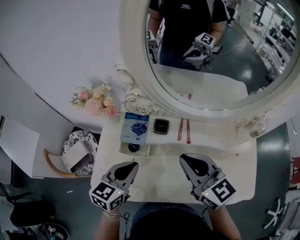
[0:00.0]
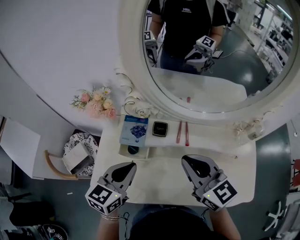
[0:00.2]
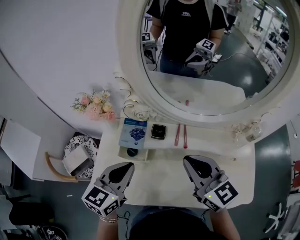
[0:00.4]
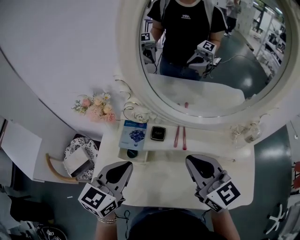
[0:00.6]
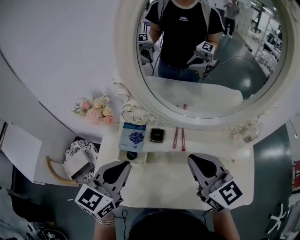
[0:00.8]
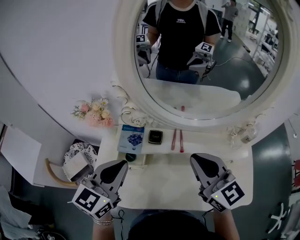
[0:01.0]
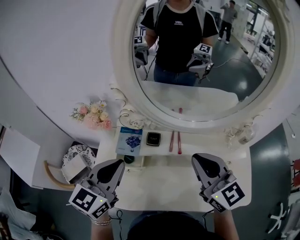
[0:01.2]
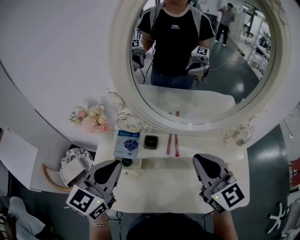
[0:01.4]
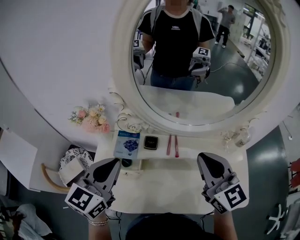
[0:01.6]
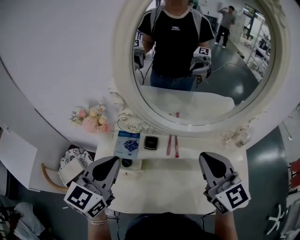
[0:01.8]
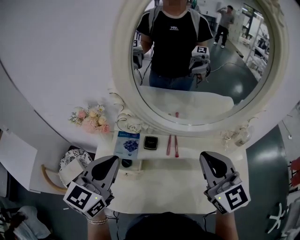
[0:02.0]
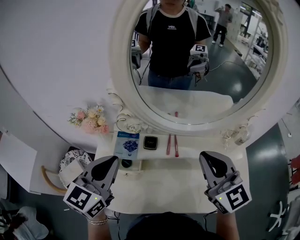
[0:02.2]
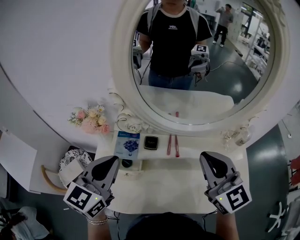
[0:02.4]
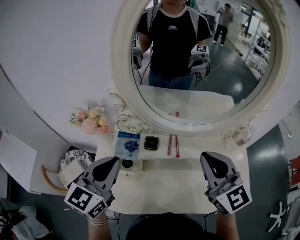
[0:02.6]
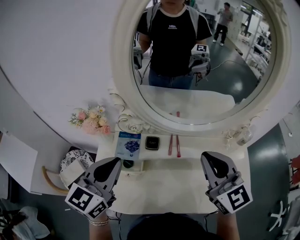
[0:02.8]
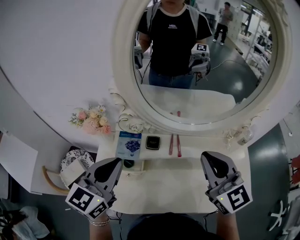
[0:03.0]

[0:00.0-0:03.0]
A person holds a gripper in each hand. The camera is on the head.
0:00.0 to 0:01.6: The left gripper shifts approximately 15 cm upward. Meanwhile the right gripper shifts about 10 cm to the right and upward.
0:01.6 to 0:03.0: The grippers move only a little.

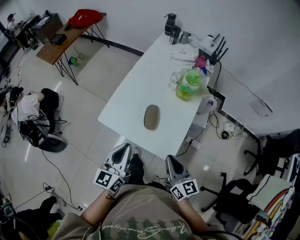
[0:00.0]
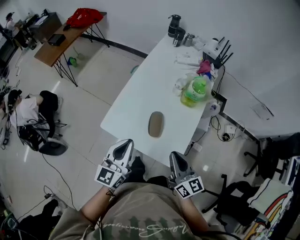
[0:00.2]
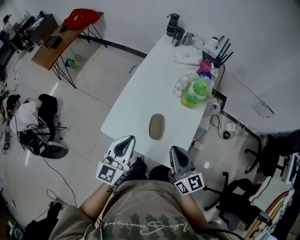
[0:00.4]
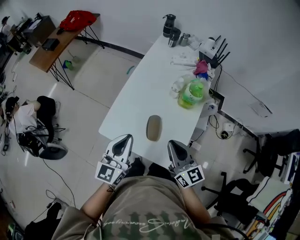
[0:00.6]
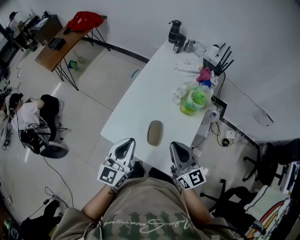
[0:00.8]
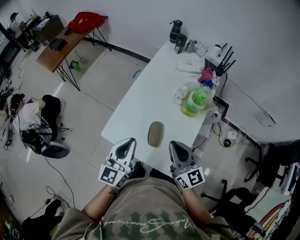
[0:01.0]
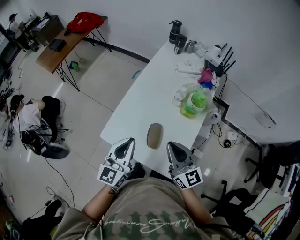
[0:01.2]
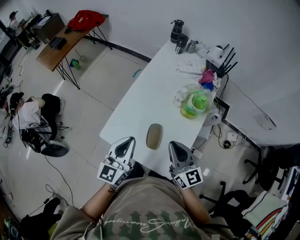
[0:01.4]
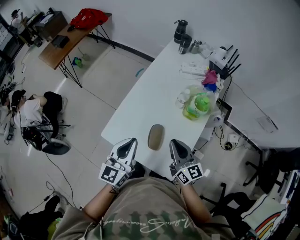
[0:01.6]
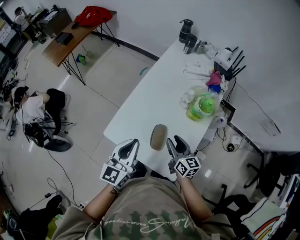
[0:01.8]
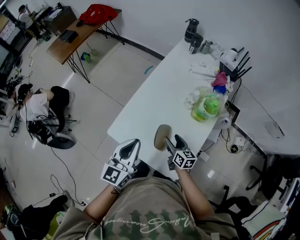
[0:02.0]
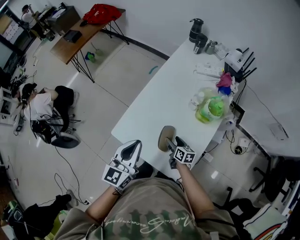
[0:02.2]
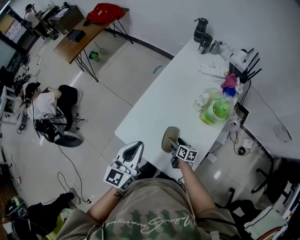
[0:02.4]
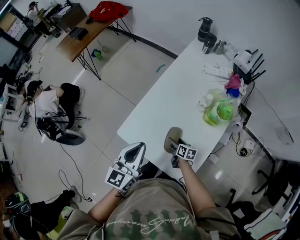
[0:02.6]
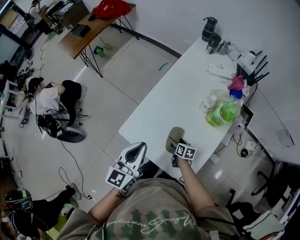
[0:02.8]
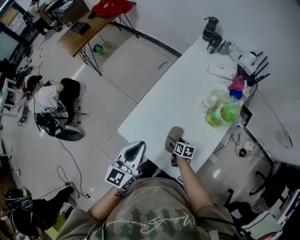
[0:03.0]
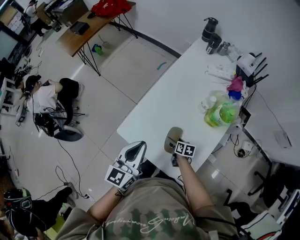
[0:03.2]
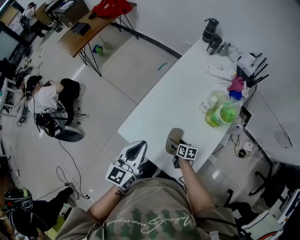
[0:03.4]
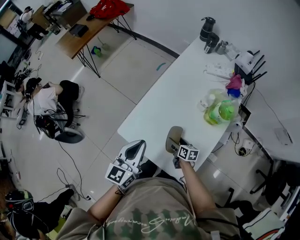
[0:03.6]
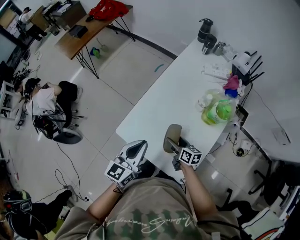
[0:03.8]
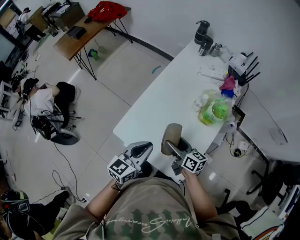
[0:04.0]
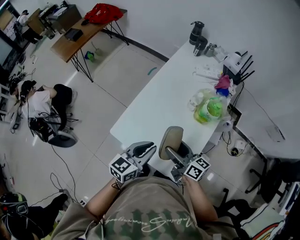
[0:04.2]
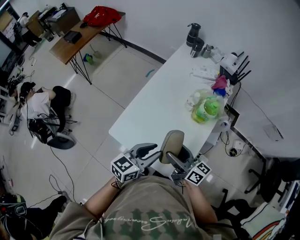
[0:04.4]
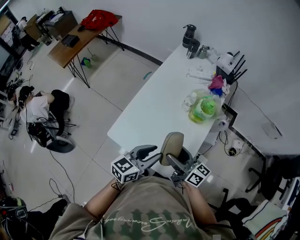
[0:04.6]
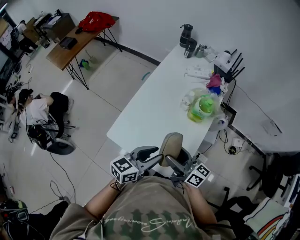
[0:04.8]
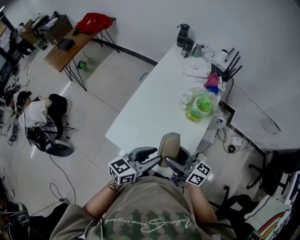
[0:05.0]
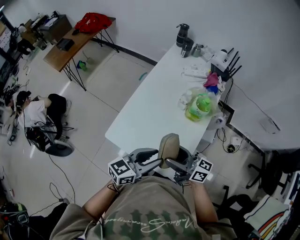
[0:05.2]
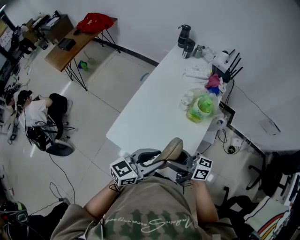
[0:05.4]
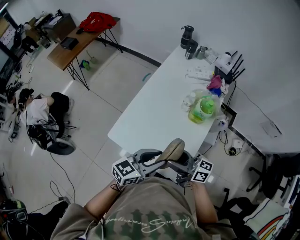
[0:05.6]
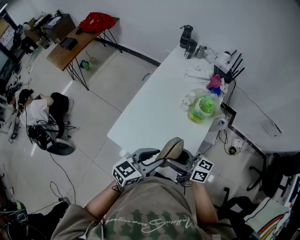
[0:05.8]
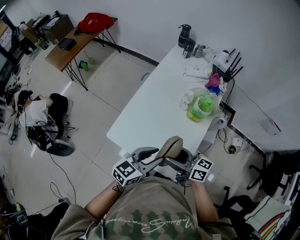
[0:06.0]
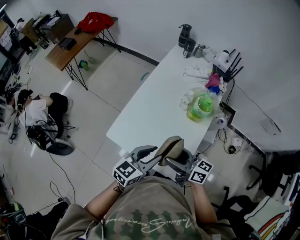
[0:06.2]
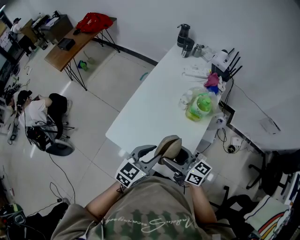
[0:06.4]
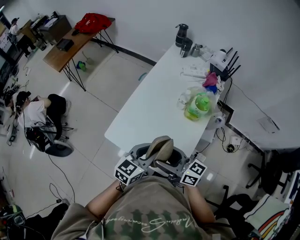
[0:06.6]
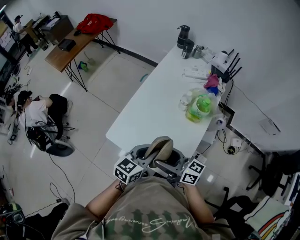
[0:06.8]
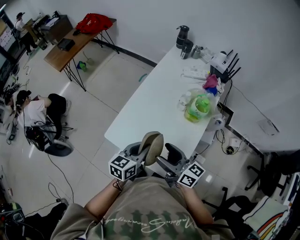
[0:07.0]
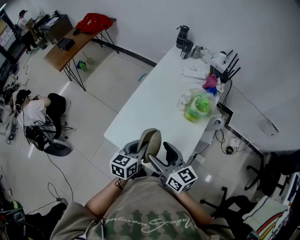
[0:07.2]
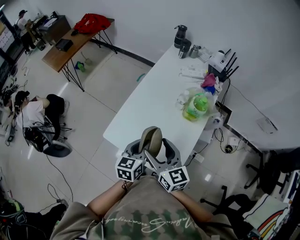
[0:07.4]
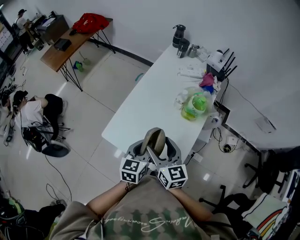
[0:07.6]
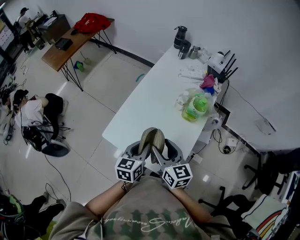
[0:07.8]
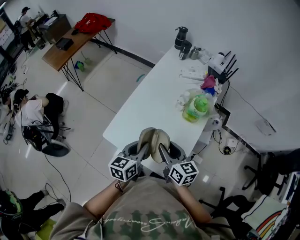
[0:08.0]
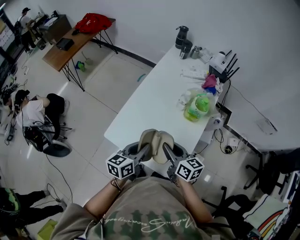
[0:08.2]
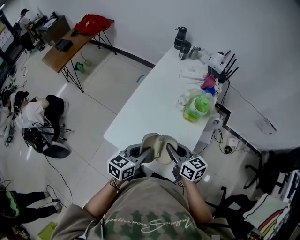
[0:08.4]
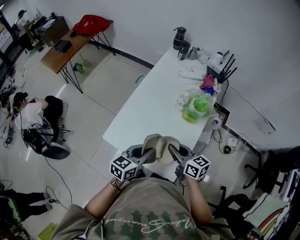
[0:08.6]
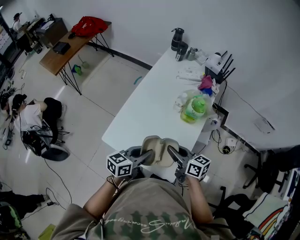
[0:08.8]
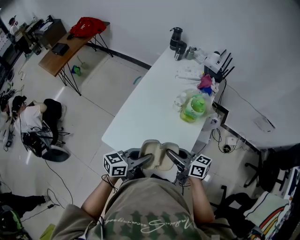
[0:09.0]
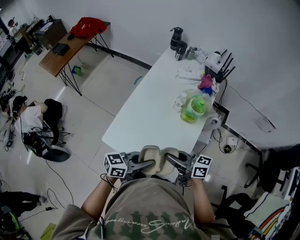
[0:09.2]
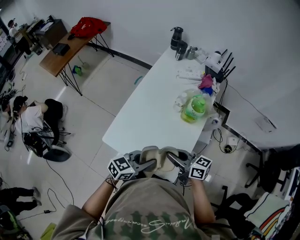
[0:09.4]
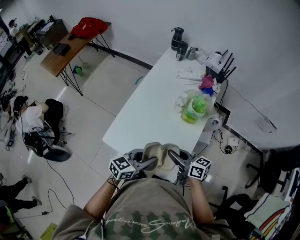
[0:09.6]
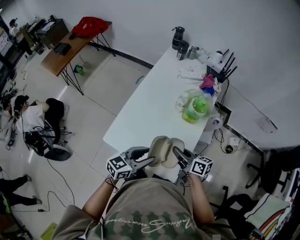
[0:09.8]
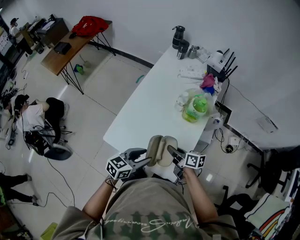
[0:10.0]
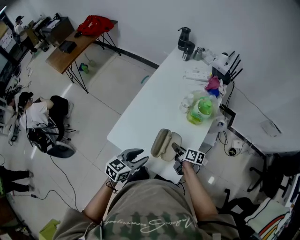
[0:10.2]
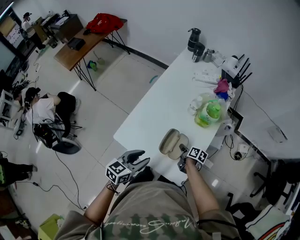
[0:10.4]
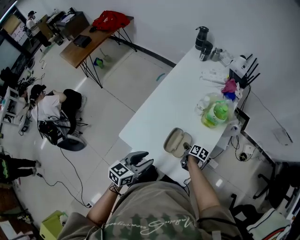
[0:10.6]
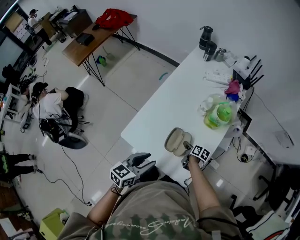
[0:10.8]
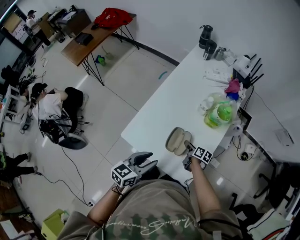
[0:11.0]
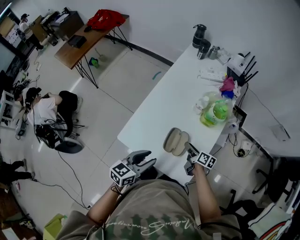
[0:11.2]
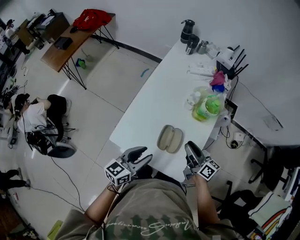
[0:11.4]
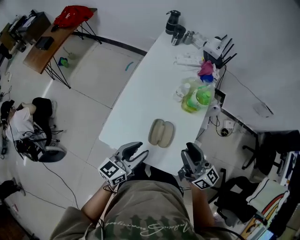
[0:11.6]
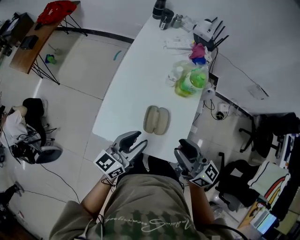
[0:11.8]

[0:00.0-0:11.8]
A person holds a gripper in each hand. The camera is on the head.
0:00.0 to 0:01.4: The grippers both shift forward by about 15 cm.
0:01.4 to 0:03.0: The left gripper moves roughly 5 cm. Meanwhile the right gripper heads downward, covering some 35 cm, angles its fingers downward, by roughly 40 degrees, and opens its fingers.
0:03.0 to 0:04.4: The left gripper goes some 10 cm to the right and backward, swivels roughly 30 degrees, and opens its fingers; the right gripper heads upward, covering some 30 cm, and angles its fingers upward, by approximately 50 degrees.
0:04.4 to 0:06.0: The grippers make only small movements.
0:06.0 to 0:07.4: The right gripper changes place by about 5 cm, and swivels about 40 degrees; the left gripper is displaced forward by about 5 cm, changes its angle by approximately 30 degrees, and closes.
0:07.4 to 0:08.8: The left gripper rotates some 30 degrees. Meanwhile the right gripper is displaced to the right and downward by roughly 10 cm, rotates approximately 30 degrees, and closes up.
0:08.8 to 0:10.4: The left gripper changes place by some 5 cm, and opens up; the right gripper is displaced downward by about 25 cm, and rotates roughly 50 degrees.
0:10.4 to 0:11.8: The left gripper moves upward, about 5 cm, and turns by some 20 degrees. The right gripper shifts some 35 cm upward, and points its fingers about 50 degrees further upward.

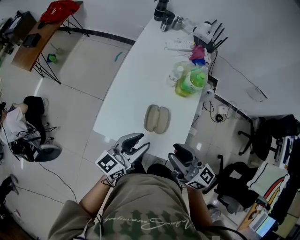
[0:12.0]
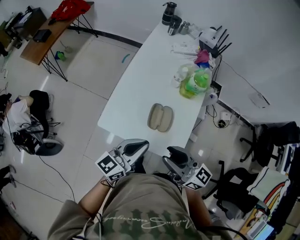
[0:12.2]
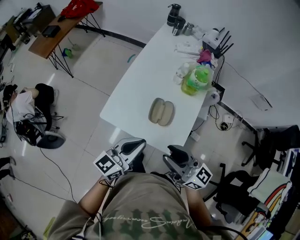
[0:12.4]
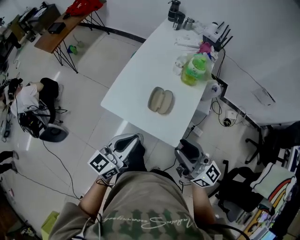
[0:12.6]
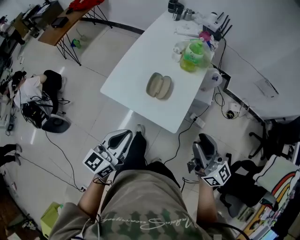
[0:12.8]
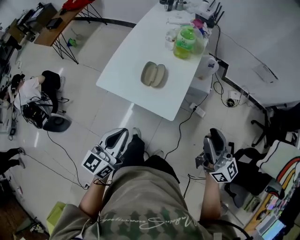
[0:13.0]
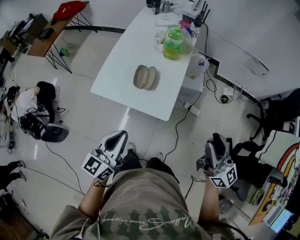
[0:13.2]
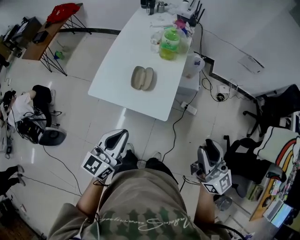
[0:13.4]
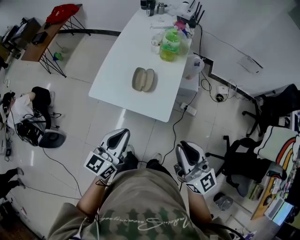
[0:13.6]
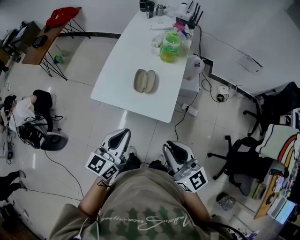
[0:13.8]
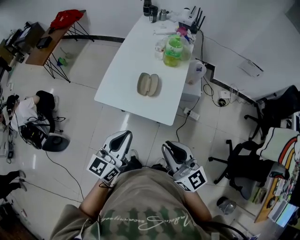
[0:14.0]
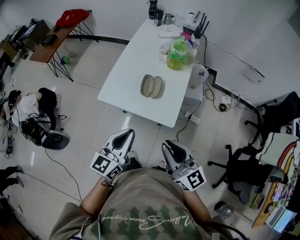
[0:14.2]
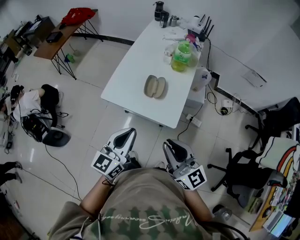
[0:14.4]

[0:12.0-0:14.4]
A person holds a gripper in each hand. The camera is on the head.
0:12.0 to 0:13.2: The left gripper goes roughly 25 cm backward, and closes. The right gripper travels backward and to the right by some 35 cm, and swivels roughly 20 degrees.
0:13.2 to 0:14.4: The right gripper shifts some 20 cm to the left.

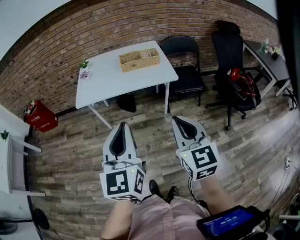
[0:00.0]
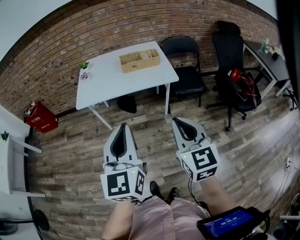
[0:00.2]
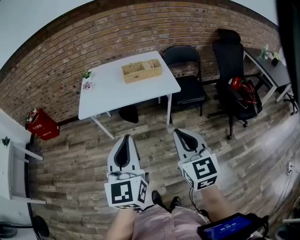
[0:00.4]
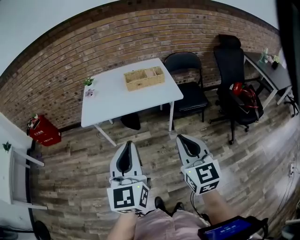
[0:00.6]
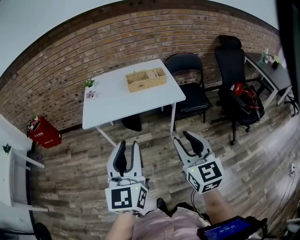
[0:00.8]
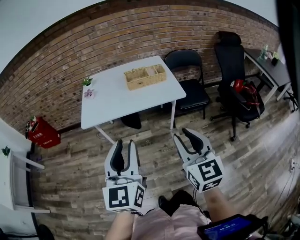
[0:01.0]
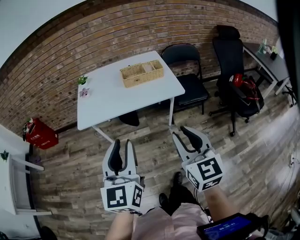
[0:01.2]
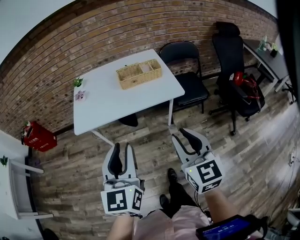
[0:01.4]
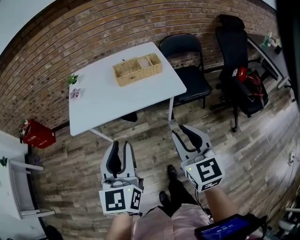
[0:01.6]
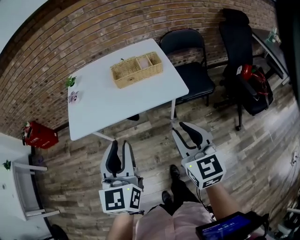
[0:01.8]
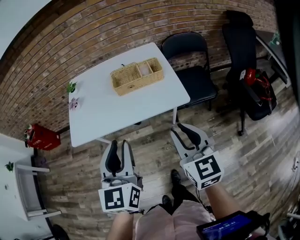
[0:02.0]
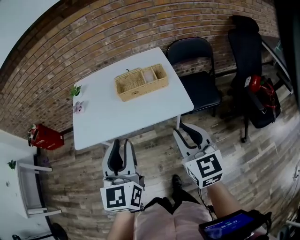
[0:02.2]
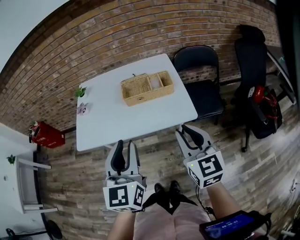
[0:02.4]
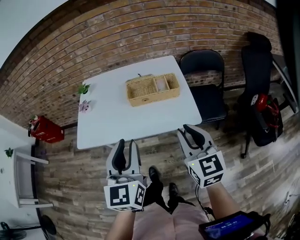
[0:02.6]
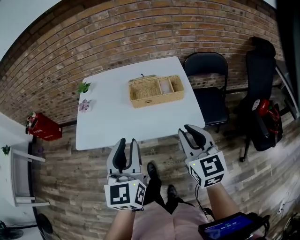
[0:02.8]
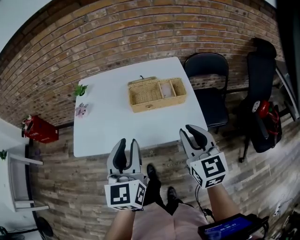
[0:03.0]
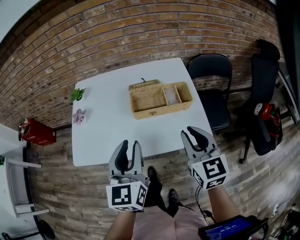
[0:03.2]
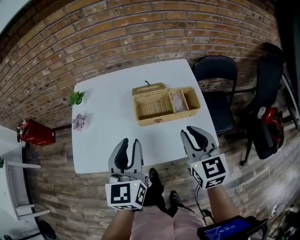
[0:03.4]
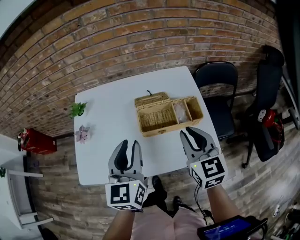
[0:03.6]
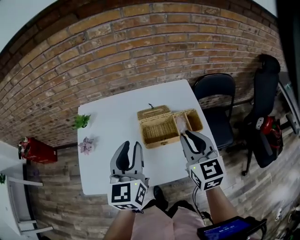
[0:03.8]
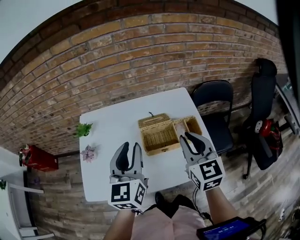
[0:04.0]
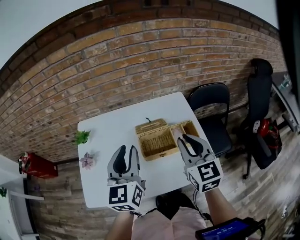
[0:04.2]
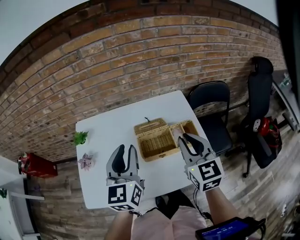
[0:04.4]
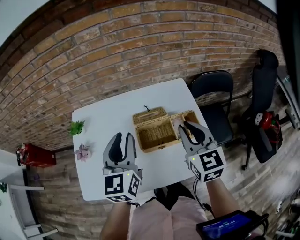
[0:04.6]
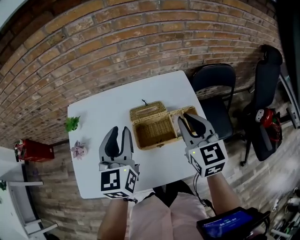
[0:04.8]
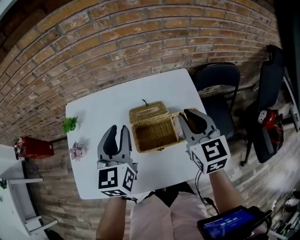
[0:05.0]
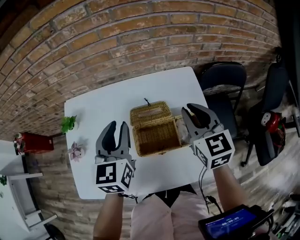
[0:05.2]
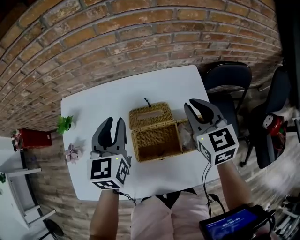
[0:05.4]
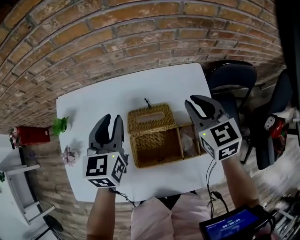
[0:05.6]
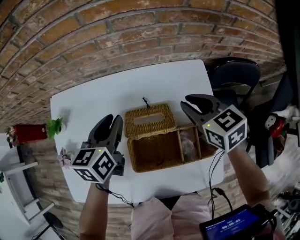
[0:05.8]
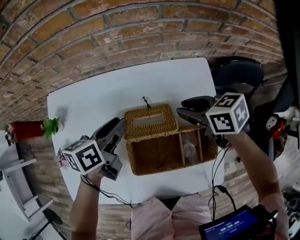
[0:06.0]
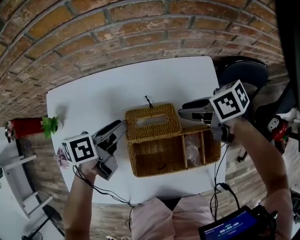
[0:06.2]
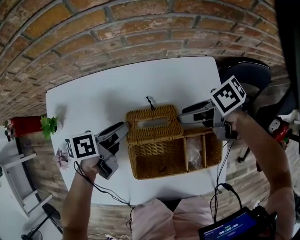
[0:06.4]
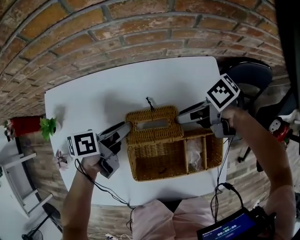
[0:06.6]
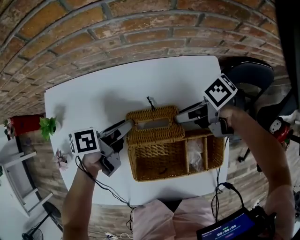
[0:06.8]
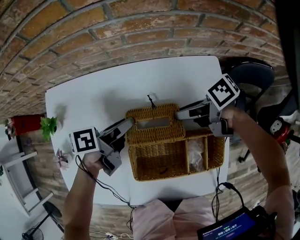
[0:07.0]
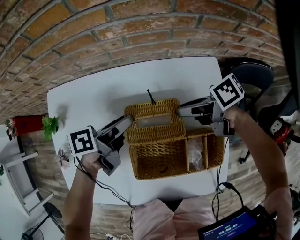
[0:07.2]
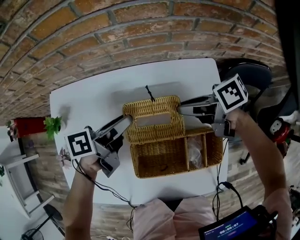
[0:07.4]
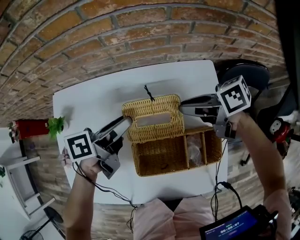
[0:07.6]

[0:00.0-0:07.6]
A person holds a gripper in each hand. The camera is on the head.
0:00.0 to 0:01.6: Both grippers travel together forward, approximately 15 cm. The right gripper opens; the left gripper opens up.
0:01.6 to 0:03.0: The two grippers go about 20 cm forward.
0:03.0 to 0:04.6: The two grippers go approximately 25 cm forward.
0:04.6 to 0:06.0: Both grippers move downward and forward, some 25 cm. The right gripper rotates about 60 degrees. Meanwhile the left gripper swivels roughly 50 degrees.
0:06.0 to 0:07.6: The left gripper moves roughly 5 cm downward and comes back, and rotates approximately 20 degrees. Meanwhile the right gripper moves some 5 cm downward and comes back, turns by some 30 degrees, and opens, then closes once more.
